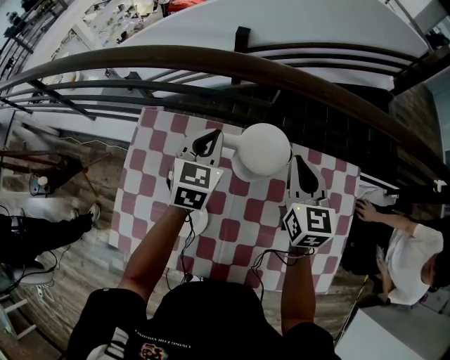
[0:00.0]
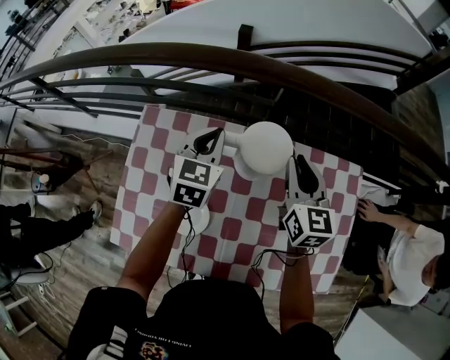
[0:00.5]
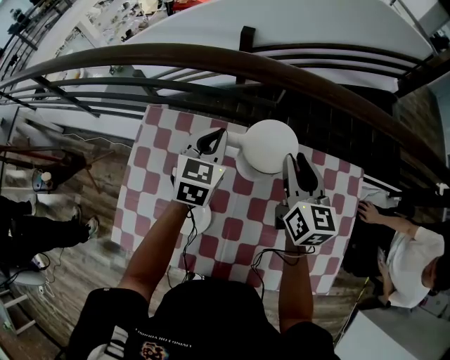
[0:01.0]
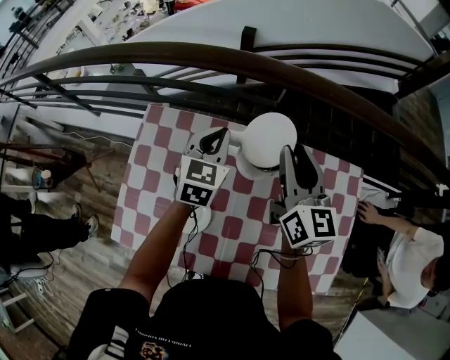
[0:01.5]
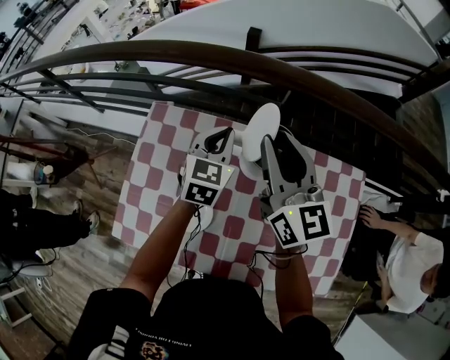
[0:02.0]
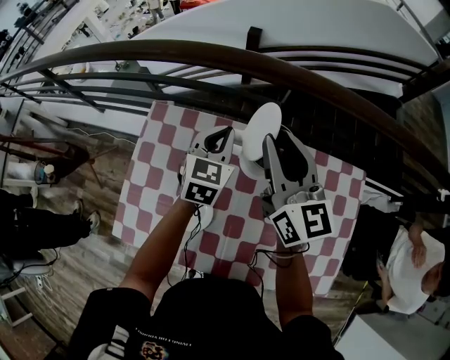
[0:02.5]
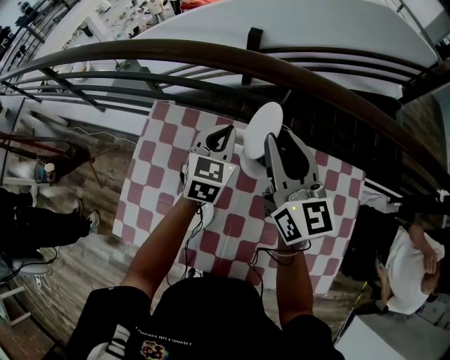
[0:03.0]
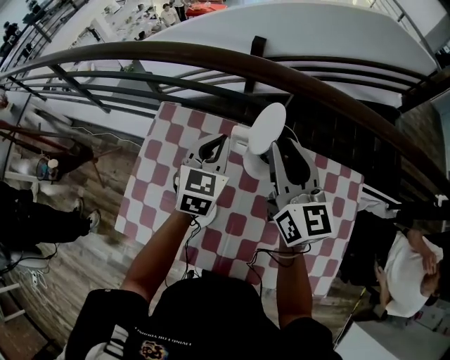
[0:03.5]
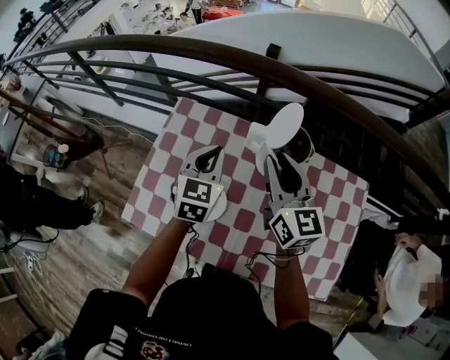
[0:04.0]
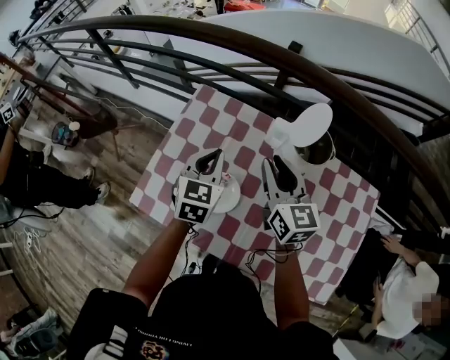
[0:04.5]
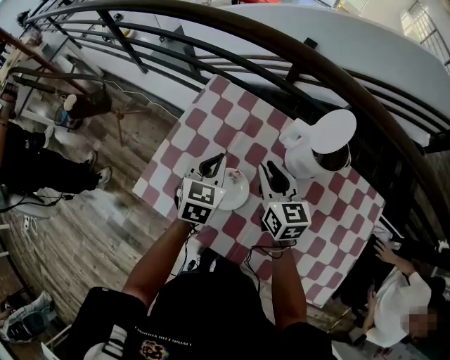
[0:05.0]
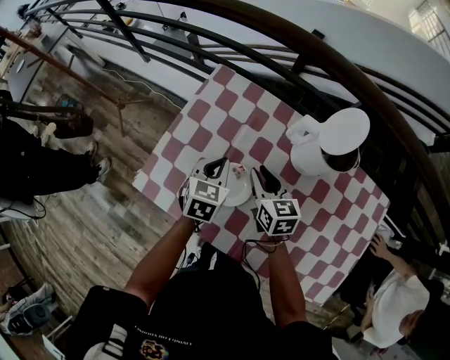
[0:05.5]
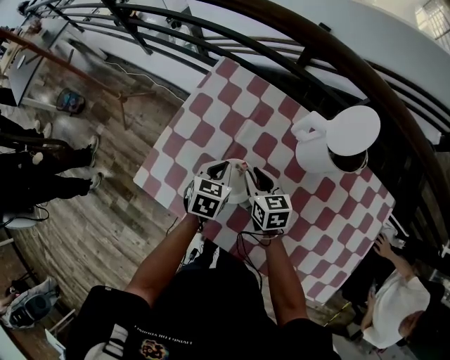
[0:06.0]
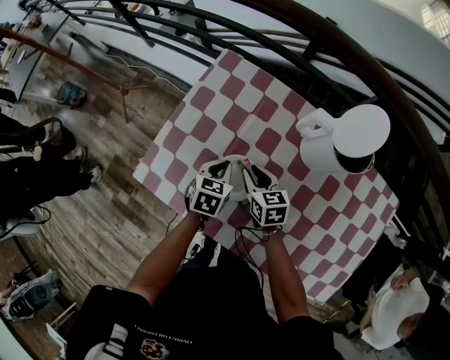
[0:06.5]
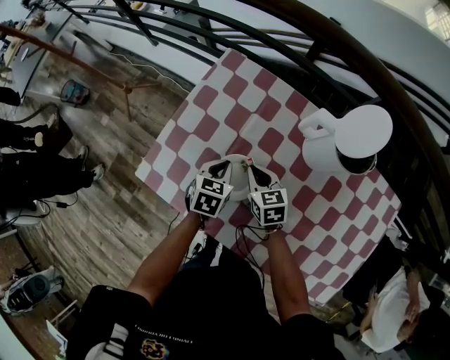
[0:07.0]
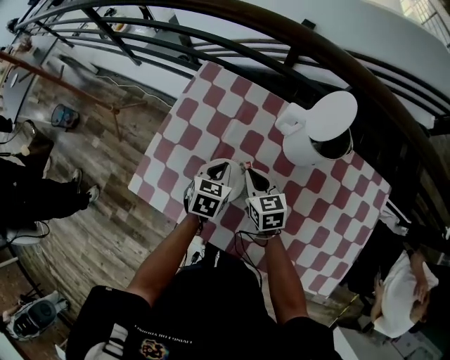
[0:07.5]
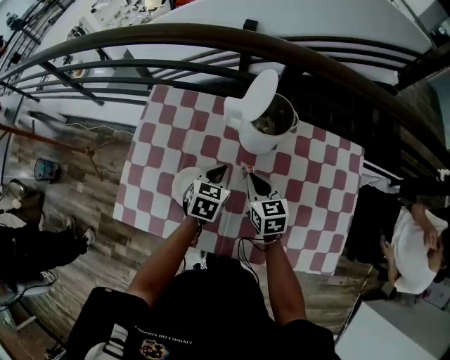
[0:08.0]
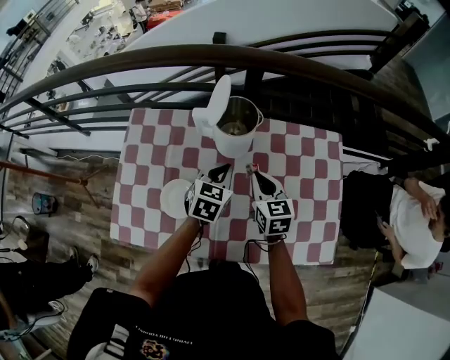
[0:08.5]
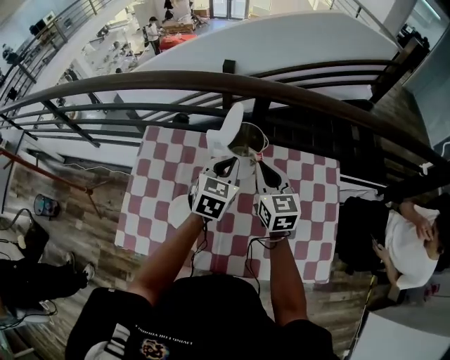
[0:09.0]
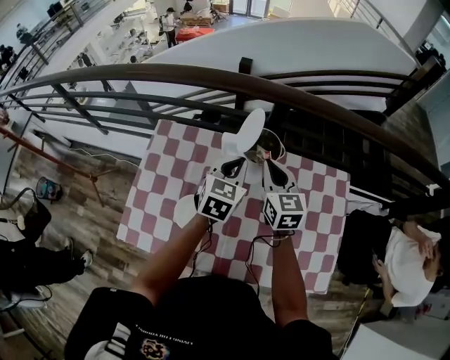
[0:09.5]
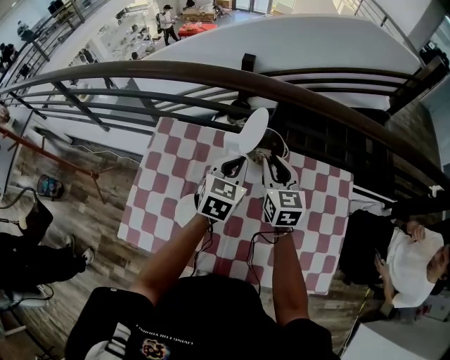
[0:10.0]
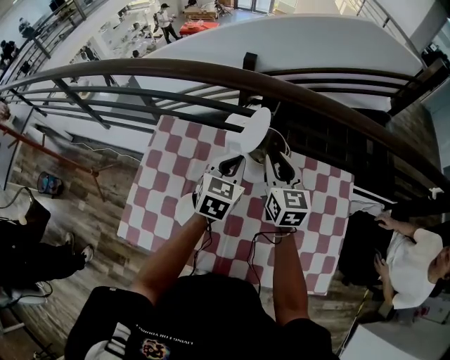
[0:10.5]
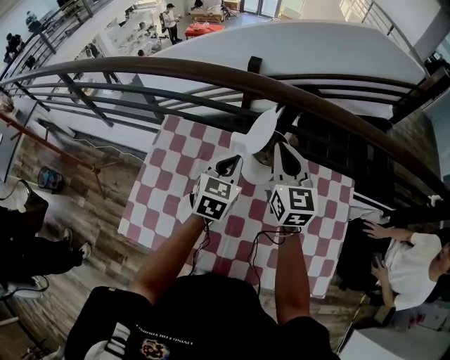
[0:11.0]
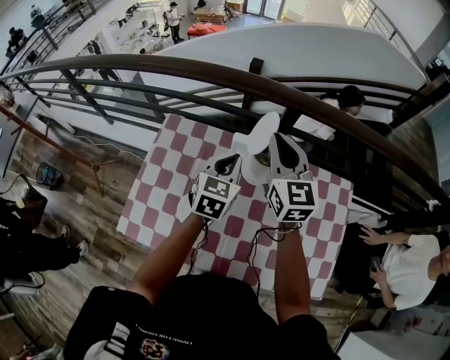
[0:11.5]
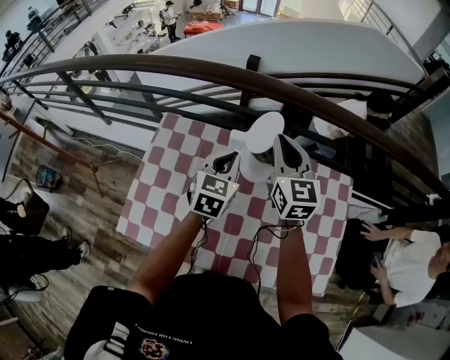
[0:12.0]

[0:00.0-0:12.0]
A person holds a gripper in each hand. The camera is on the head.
0:00.0 to 0:02.0: The right gripper heads upward and to the left, covering roughly 15 cm, rotates some 30 degrees, and opens its fingers.
0:02.0 to 0:04.0: The right gripper is displaced backward by approximately 5 cm; the left gripper heads backward and to the left, covering some 15 cm.
0:04.0 to 0:06.0: The two grippers go about 25 cm downward and to the left. The right gripper angles its fingers downward, by about 30 degrees. The left gripper turns by about 30 degrees.
0:06.0 to 0:08.0: The grippers both shift to the right by roughly 15 cm. The right gripper closes. The left gripper swivels approximately 20 degrees.
0:08.0 to 0:10.0: The two grippers go approximately 20 cm upward and forward.
0:10.0 to 0:12.0: The right gripper heads upward, covering about 10 cm.

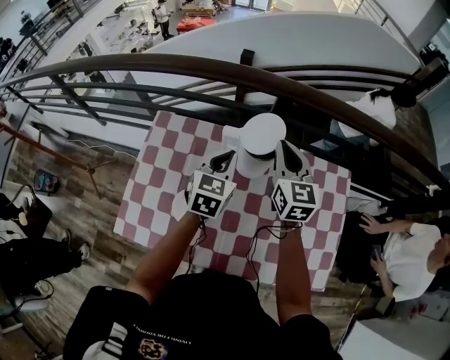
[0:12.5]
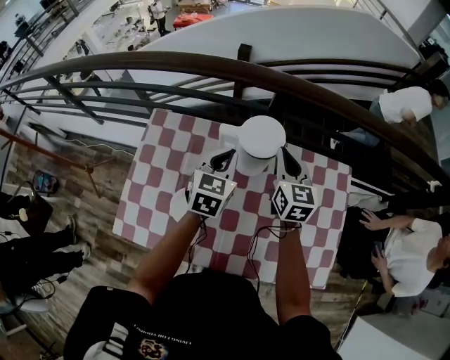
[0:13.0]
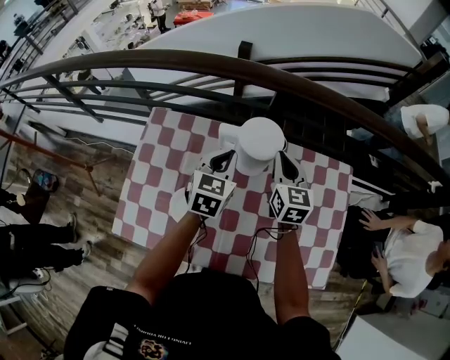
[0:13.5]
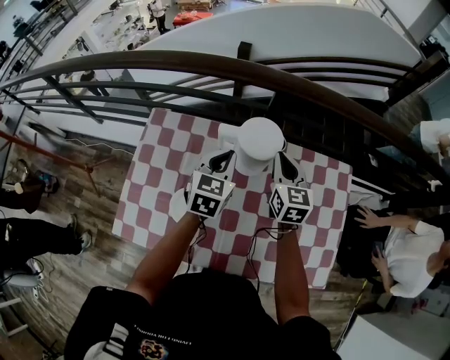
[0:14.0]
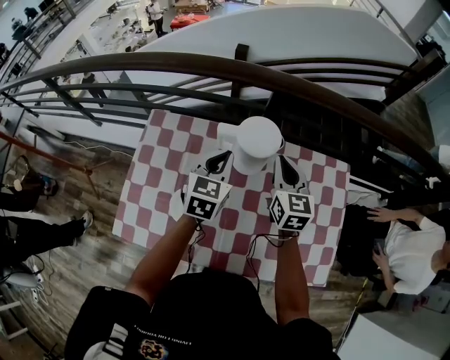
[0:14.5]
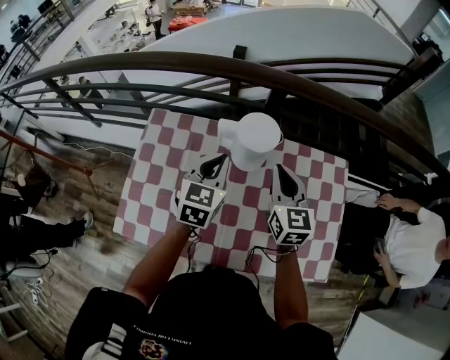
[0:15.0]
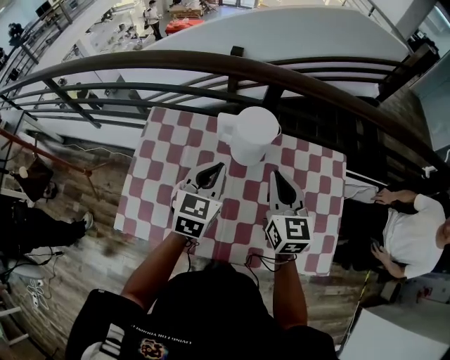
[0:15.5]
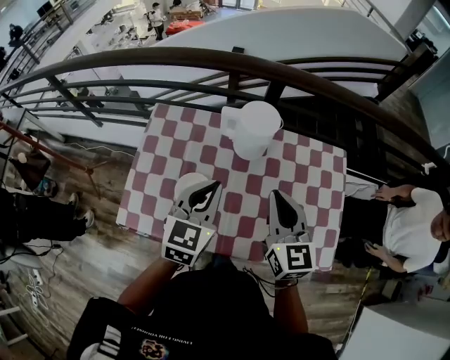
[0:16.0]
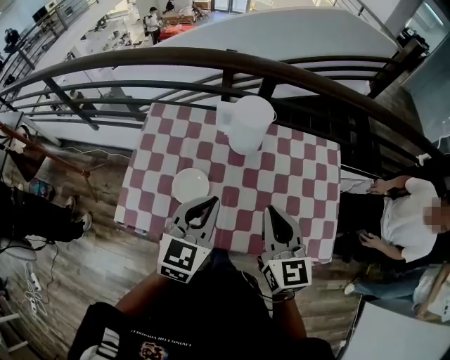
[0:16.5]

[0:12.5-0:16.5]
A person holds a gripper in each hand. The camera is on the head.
0:12.5 to 0:14.5: The right gripper is displaced downward by some 5 cm.
0:14.5 to 0:16.5: The two grippers go approximately 25 cm backward.

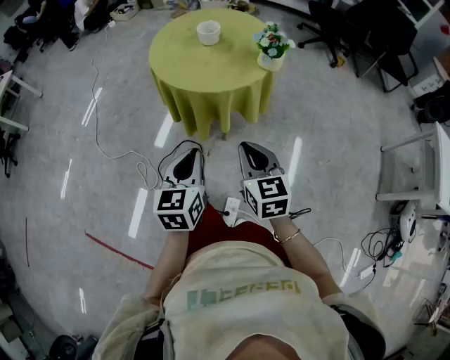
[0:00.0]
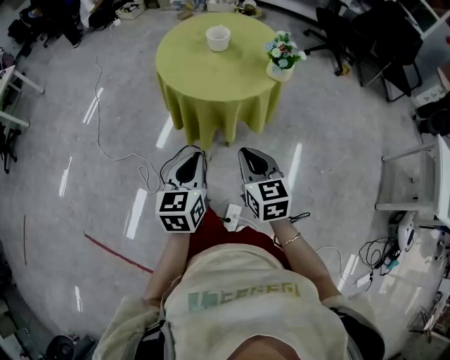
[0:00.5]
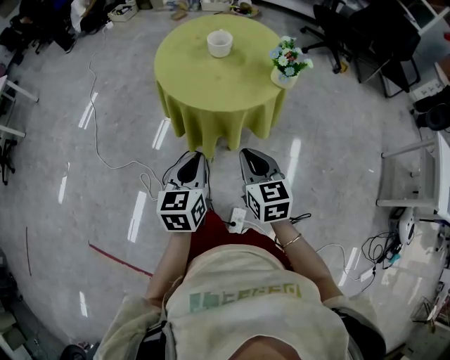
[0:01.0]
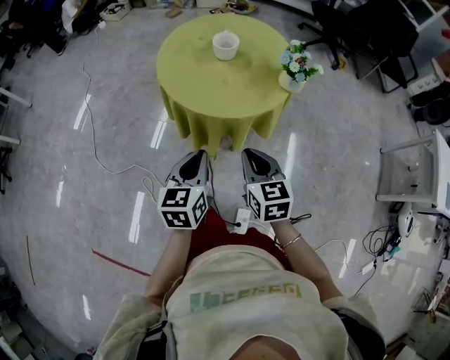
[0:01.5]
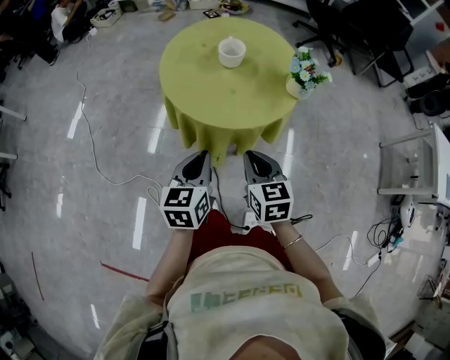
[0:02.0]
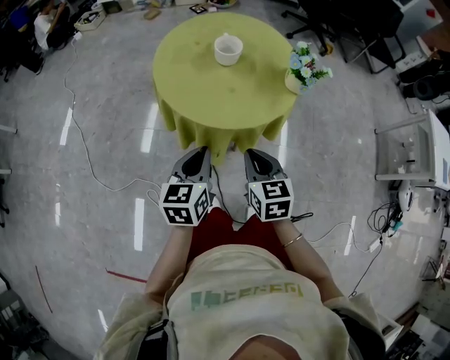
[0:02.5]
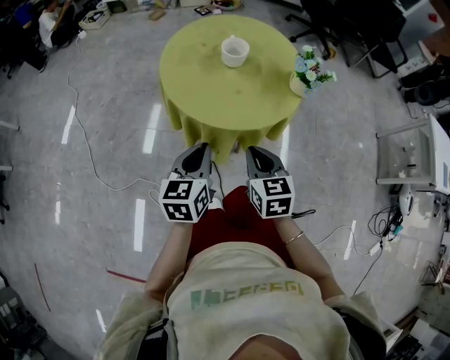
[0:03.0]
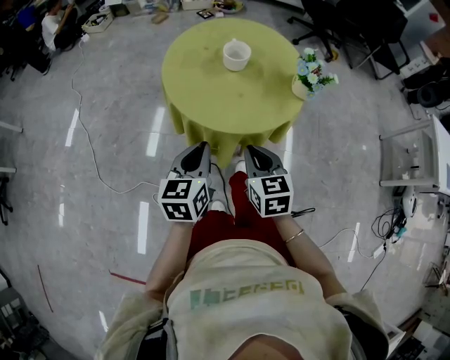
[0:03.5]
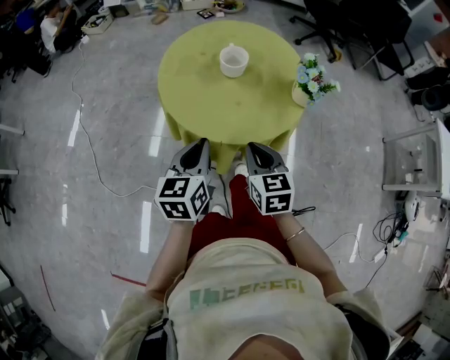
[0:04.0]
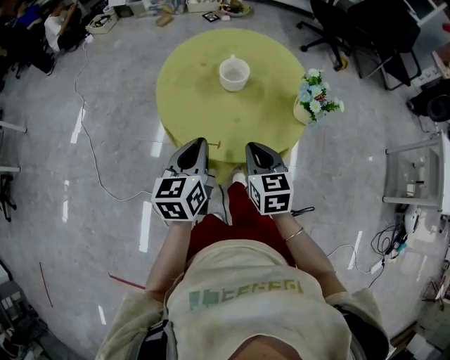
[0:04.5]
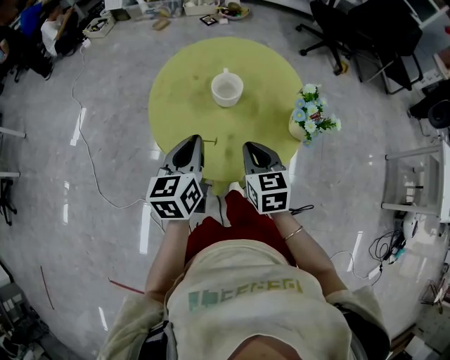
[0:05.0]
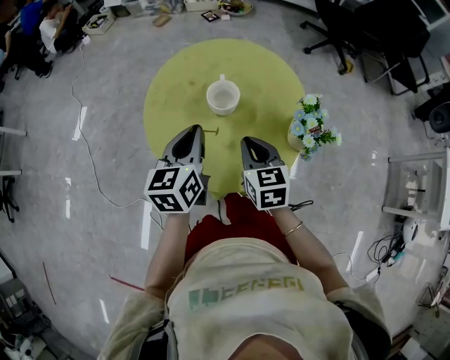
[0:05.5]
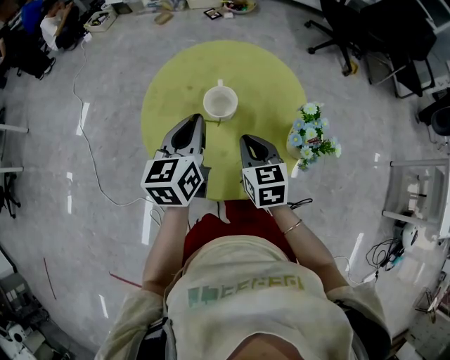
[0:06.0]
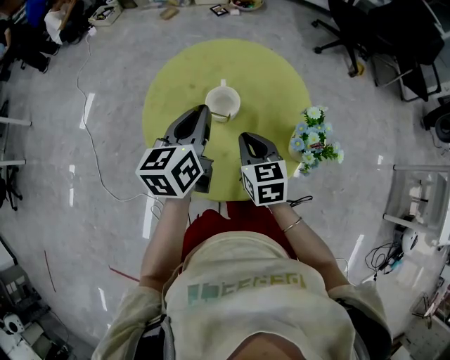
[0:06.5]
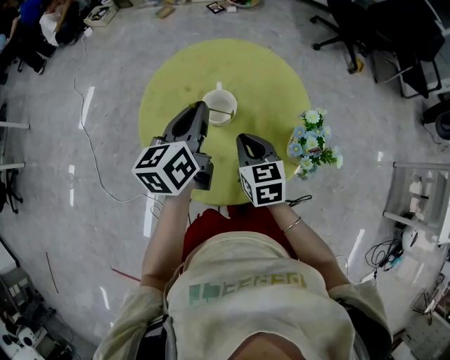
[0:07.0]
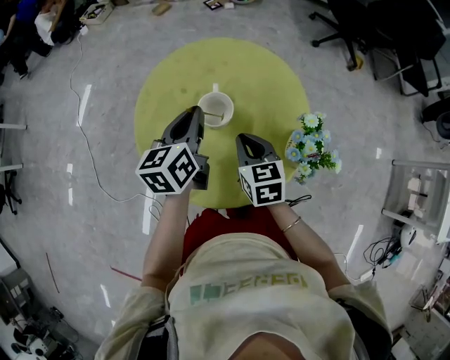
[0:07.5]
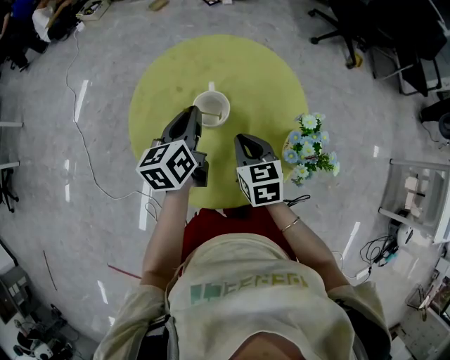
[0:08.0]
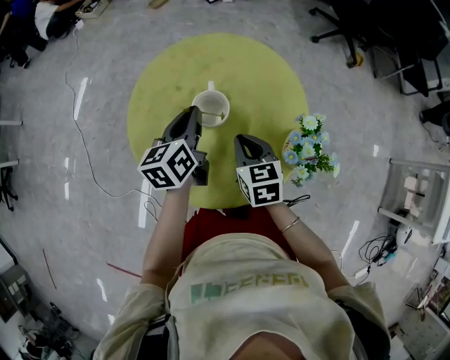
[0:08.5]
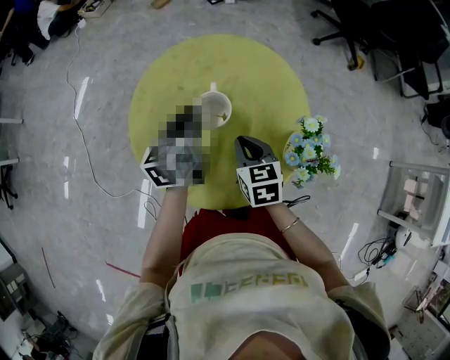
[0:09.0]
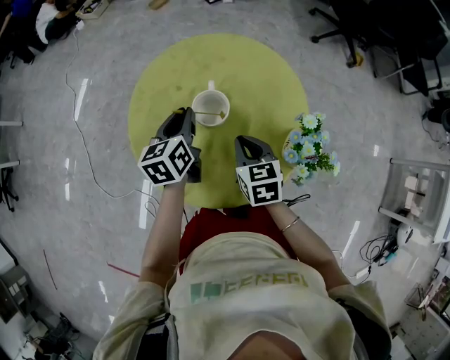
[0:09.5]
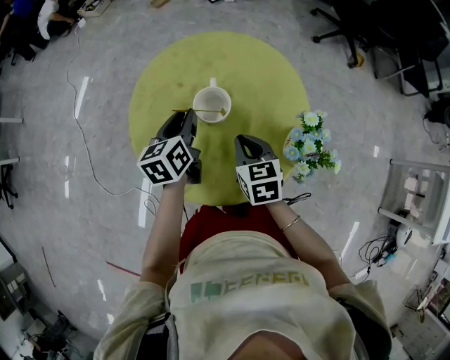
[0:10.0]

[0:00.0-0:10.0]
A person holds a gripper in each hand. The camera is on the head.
0:00.0 to 0:02.0: Both grippers travel together forward and to the left, some 25 cm.
0:02.0 to 0:04.0: Both grippers travel together forward, roughly 10 cm.
0:04.0 to 0:06.0: The two grippers go about 25 cm forward.
0:06.0 to 0:08.0: The left gripper heads forward and downward, covering roughly 10 cm; the right gripper moves forward, roughly 5 cm.
0:08.0 to 0:10.0: The left gripper heads downward, covering approximately 5 cm.

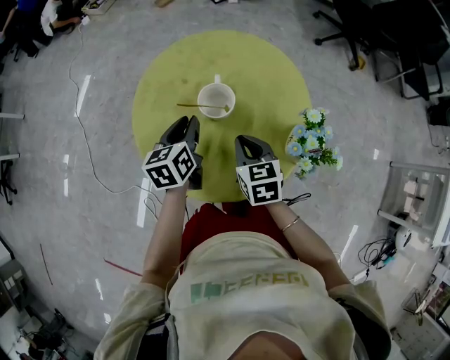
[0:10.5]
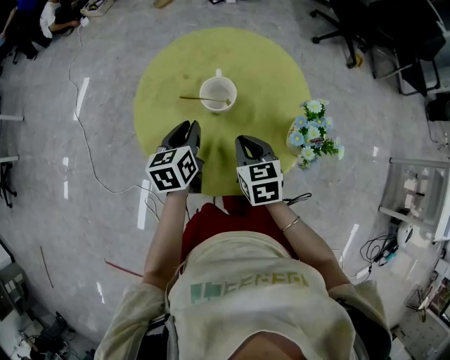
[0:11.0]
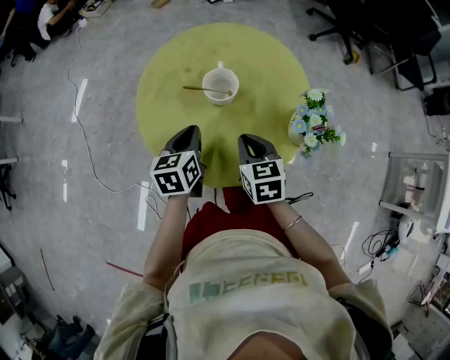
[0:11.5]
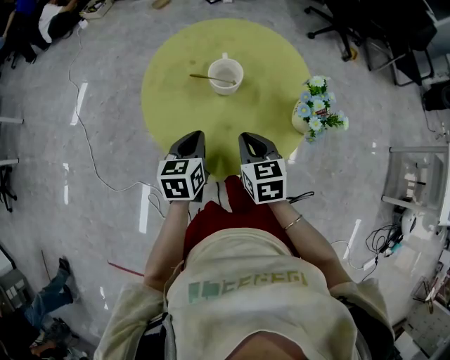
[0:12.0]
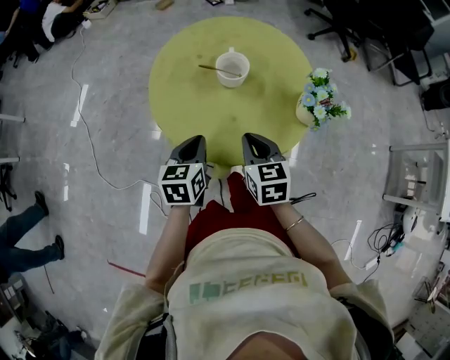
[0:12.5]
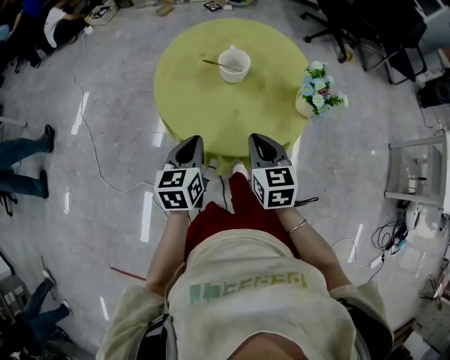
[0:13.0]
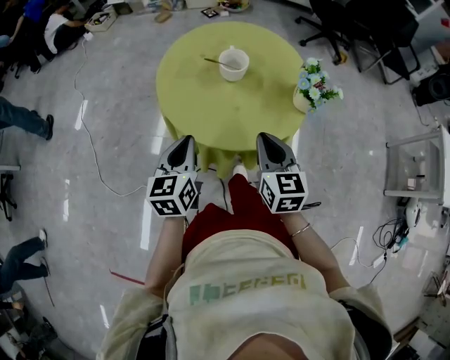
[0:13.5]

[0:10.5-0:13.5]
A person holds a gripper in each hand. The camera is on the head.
0:10.5 to 0:12.0: The two grippers go roughly 10 cm backward.
0:12.0 to 0:13.5: The left gripper heads backward, upward and to the left, covering approximately 15 cm; the right gripper goes about 15 cm backward and upward.
